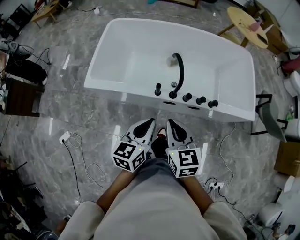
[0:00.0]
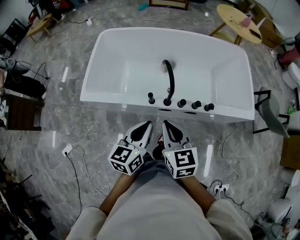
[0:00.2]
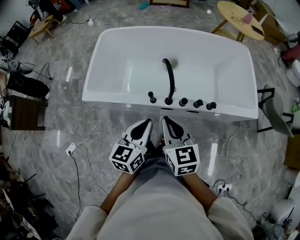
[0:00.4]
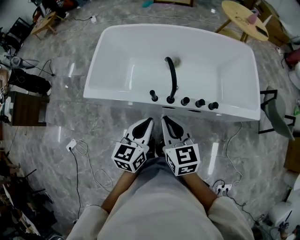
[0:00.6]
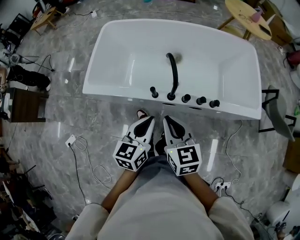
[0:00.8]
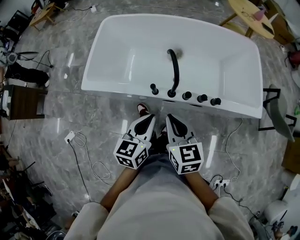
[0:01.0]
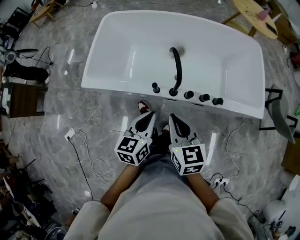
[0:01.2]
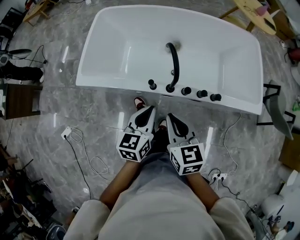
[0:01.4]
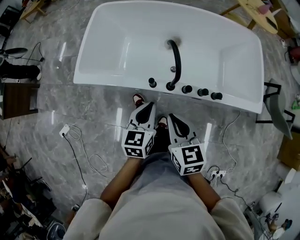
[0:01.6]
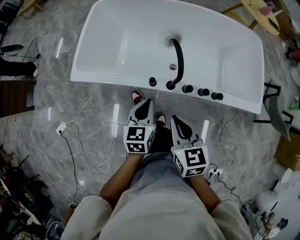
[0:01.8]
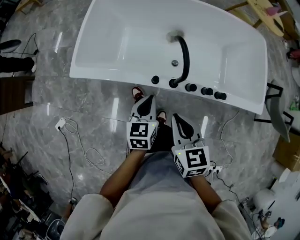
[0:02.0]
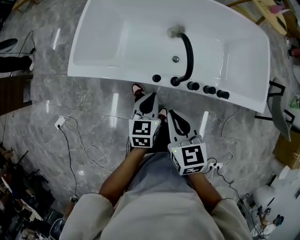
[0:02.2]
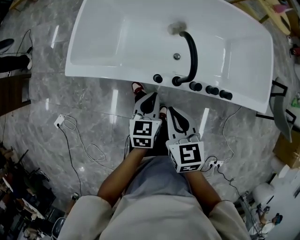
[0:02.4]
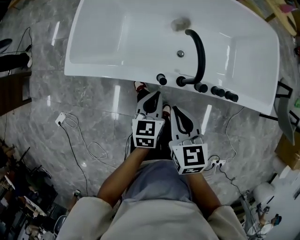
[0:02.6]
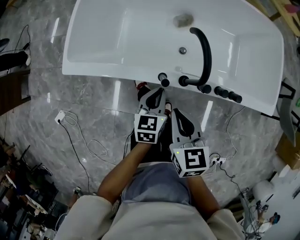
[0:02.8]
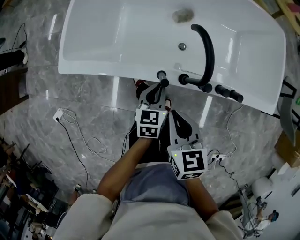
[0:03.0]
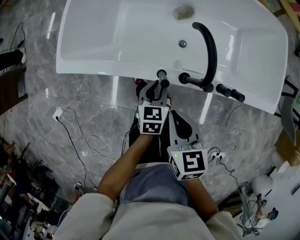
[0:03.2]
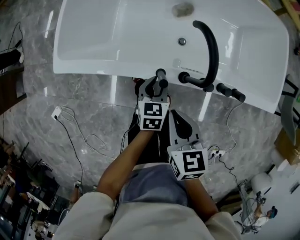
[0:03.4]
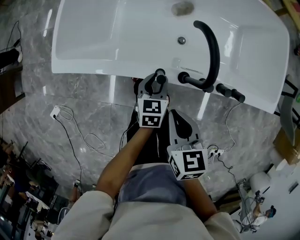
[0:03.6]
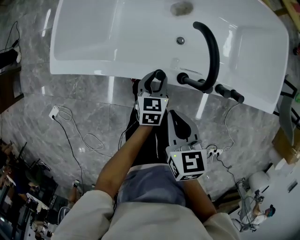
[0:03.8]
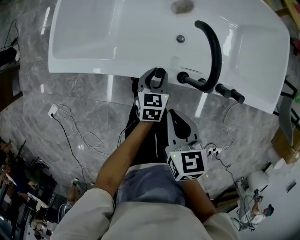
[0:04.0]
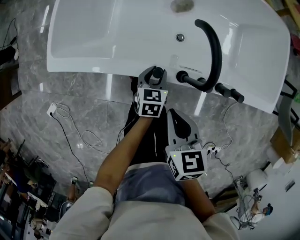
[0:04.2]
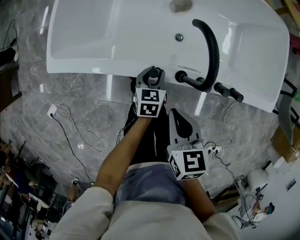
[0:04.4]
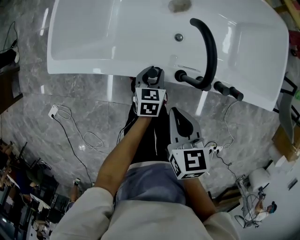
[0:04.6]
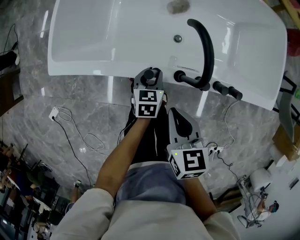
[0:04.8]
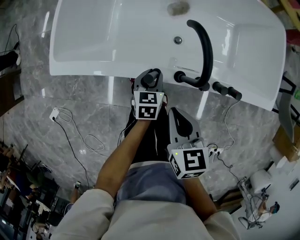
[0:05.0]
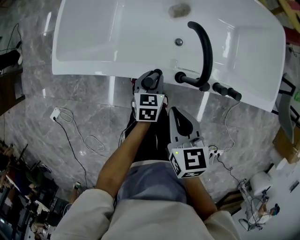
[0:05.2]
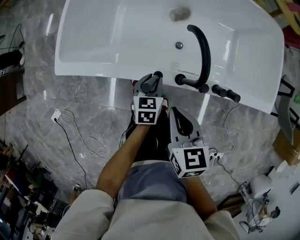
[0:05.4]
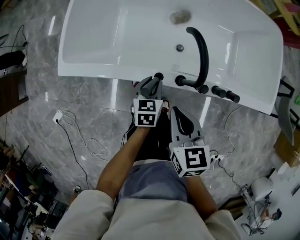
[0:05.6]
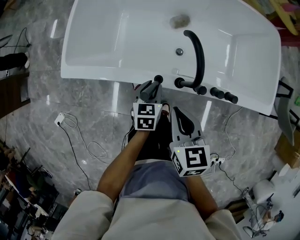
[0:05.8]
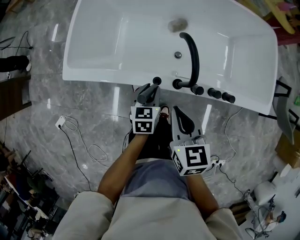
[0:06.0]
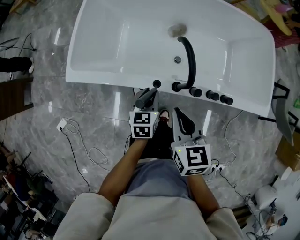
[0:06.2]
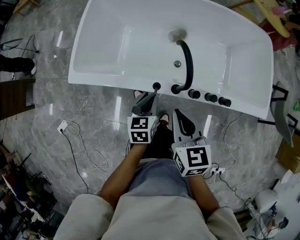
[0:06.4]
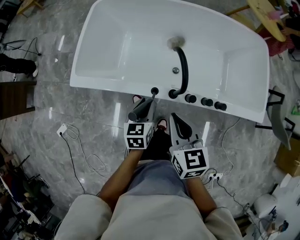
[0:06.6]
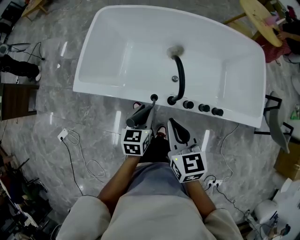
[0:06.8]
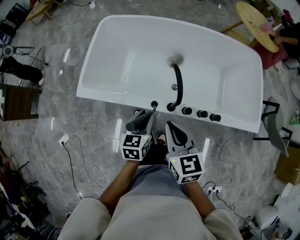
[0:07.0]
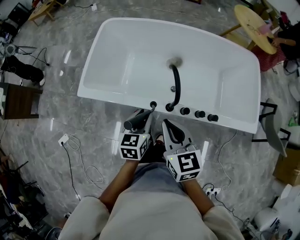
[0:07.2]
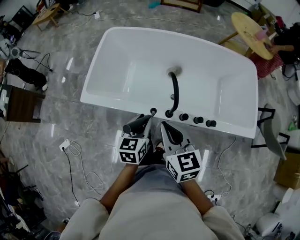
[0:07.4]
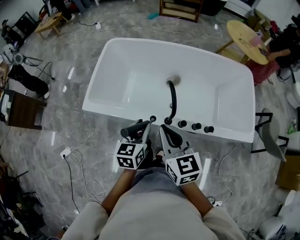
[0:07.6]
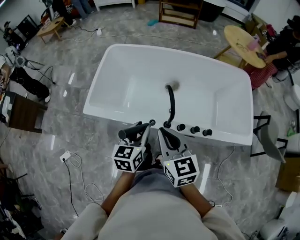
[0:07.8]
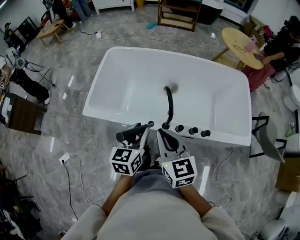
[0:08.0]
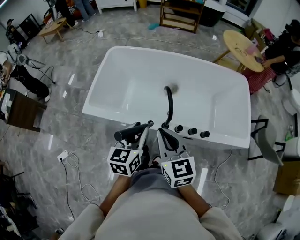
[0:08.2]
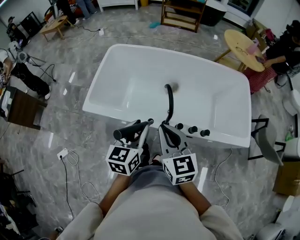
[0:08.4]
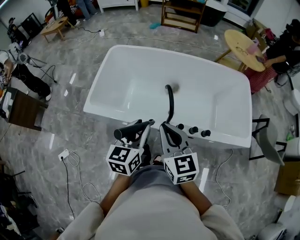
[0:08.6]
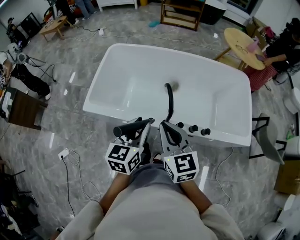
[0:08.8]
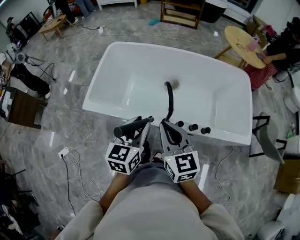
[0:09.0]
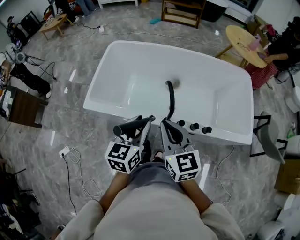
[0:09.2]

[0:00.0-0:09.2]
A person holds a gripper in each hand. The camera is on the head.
0:00.0 to 0:01.6: The left gripper shifts roughly 10 cm downward and forward; the right gripper is displaced downward by approximately 5 cm.
0:01.6 to 0:03.0: The left gripper heads downward and forward, covering approximately 20 cm. Meanwhile the right gripper moves downward and forward, approximately 15 cm.
0:03.0 to 0:04.6: The left gripper travels downward by approximately 10 cm, and opens up.
0:04.6 to 0:06.2: The two grippers go some 10 cm upward.
0:06.2 to 0:07.6: The grippers both shift upward by some 15 cm.
0:07.6 to 0:09.2: The left gripper goes about 10 cm upward.

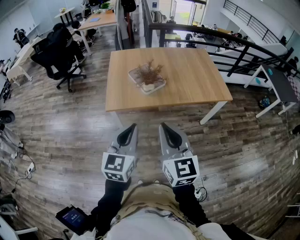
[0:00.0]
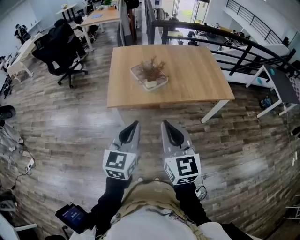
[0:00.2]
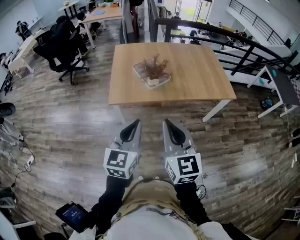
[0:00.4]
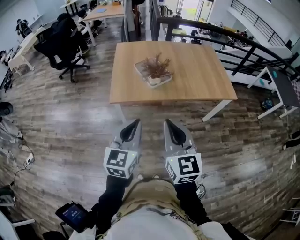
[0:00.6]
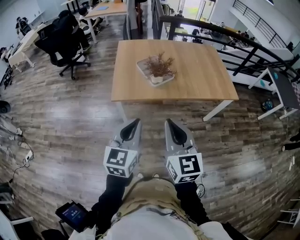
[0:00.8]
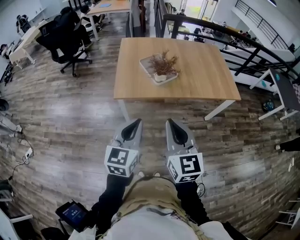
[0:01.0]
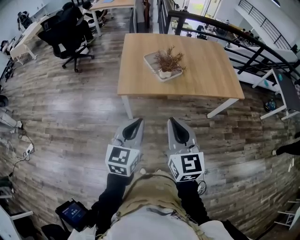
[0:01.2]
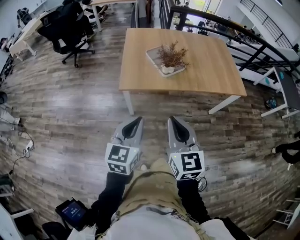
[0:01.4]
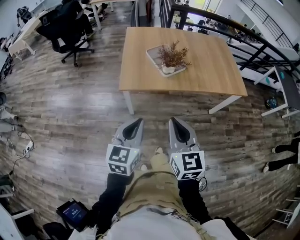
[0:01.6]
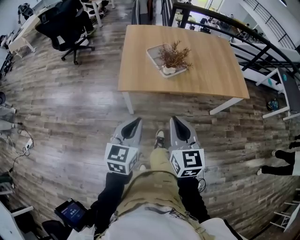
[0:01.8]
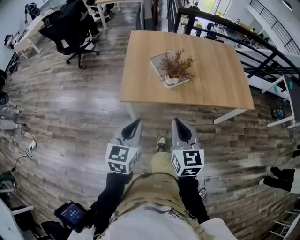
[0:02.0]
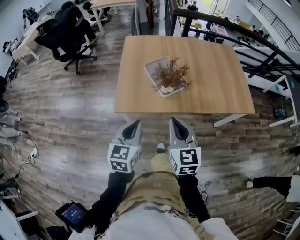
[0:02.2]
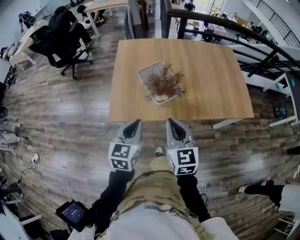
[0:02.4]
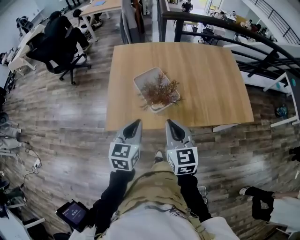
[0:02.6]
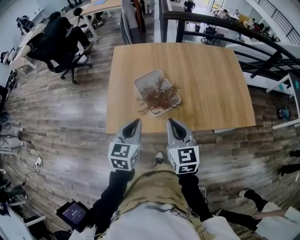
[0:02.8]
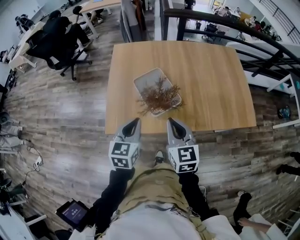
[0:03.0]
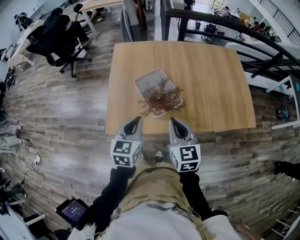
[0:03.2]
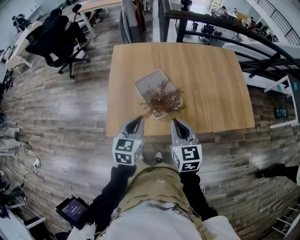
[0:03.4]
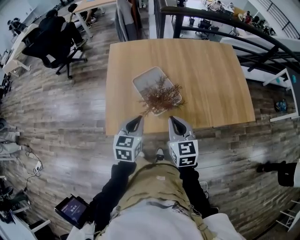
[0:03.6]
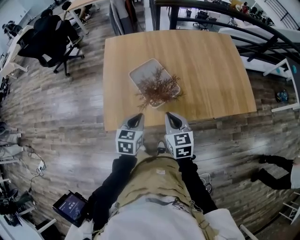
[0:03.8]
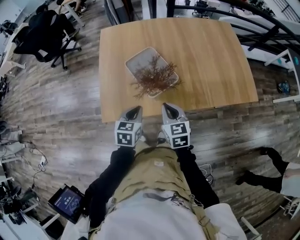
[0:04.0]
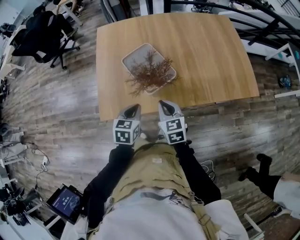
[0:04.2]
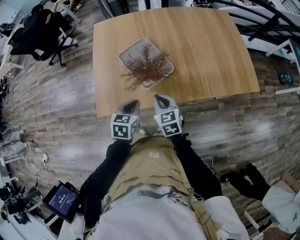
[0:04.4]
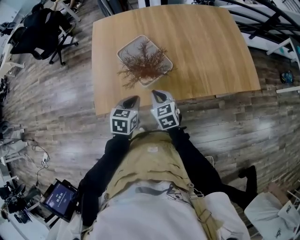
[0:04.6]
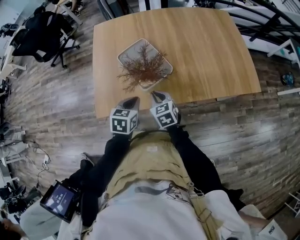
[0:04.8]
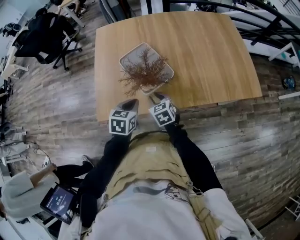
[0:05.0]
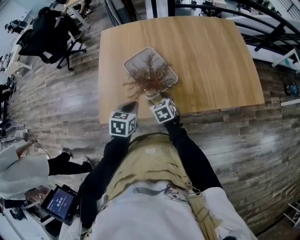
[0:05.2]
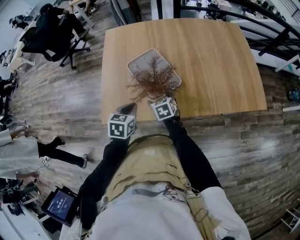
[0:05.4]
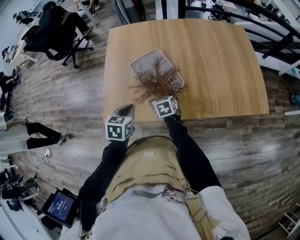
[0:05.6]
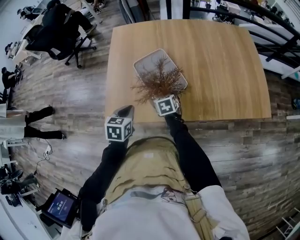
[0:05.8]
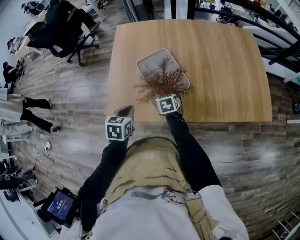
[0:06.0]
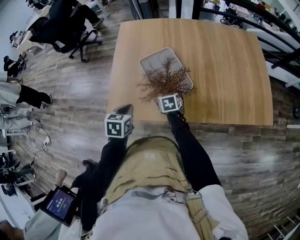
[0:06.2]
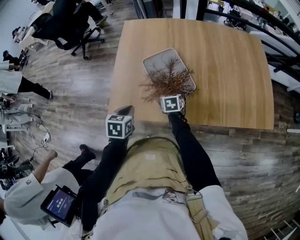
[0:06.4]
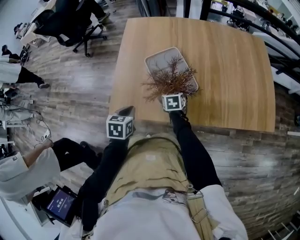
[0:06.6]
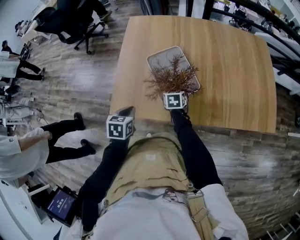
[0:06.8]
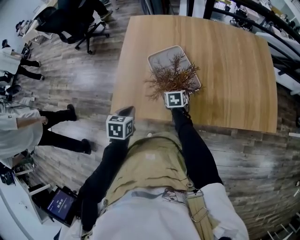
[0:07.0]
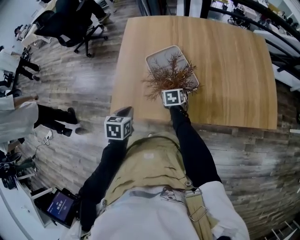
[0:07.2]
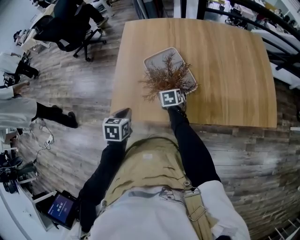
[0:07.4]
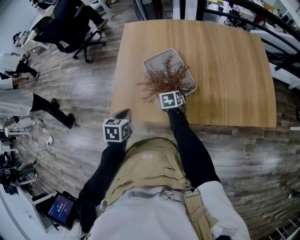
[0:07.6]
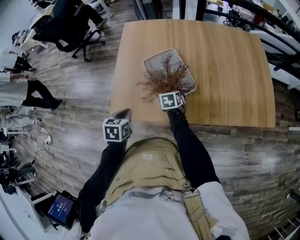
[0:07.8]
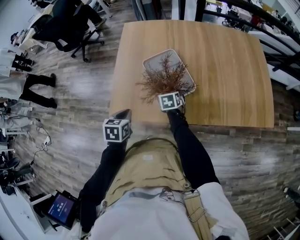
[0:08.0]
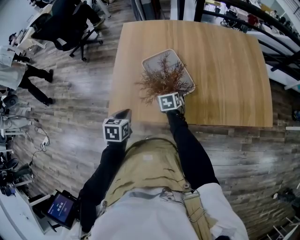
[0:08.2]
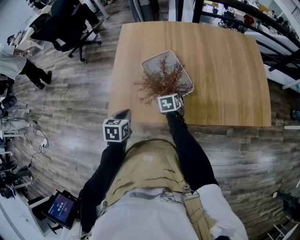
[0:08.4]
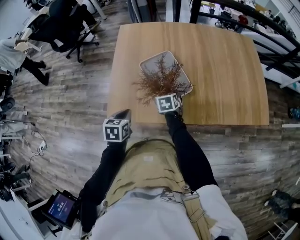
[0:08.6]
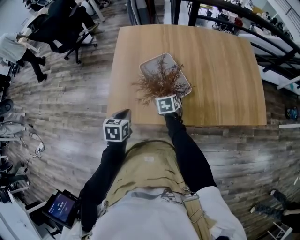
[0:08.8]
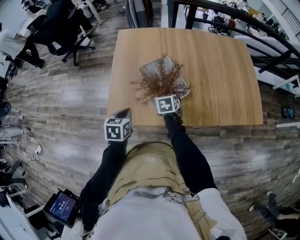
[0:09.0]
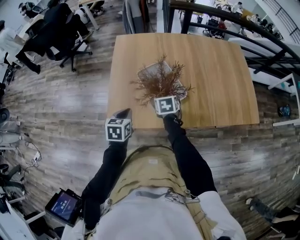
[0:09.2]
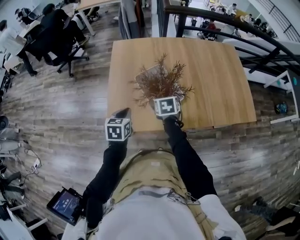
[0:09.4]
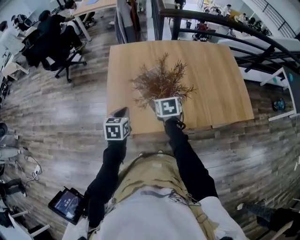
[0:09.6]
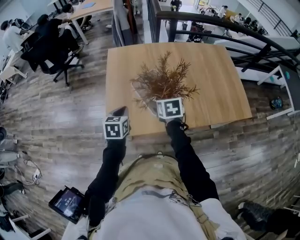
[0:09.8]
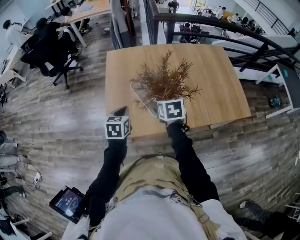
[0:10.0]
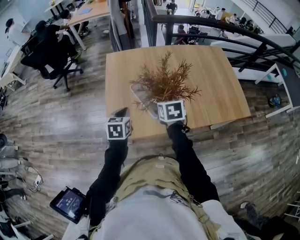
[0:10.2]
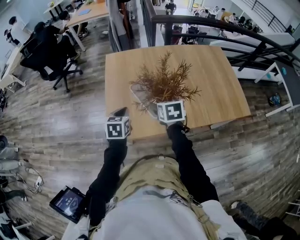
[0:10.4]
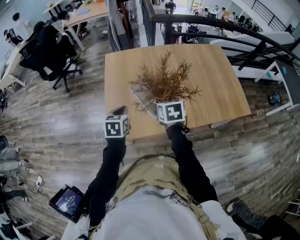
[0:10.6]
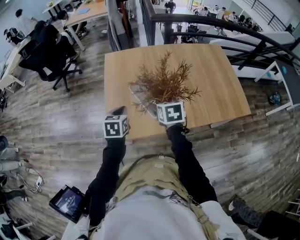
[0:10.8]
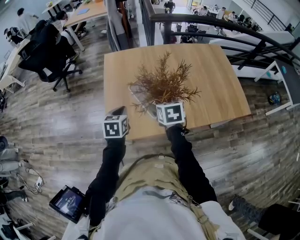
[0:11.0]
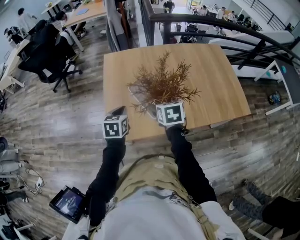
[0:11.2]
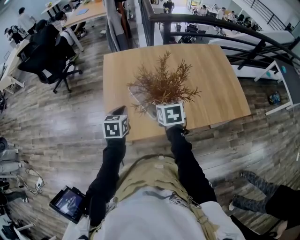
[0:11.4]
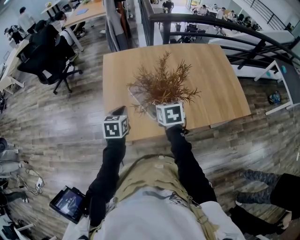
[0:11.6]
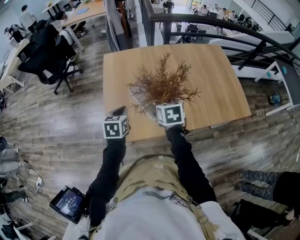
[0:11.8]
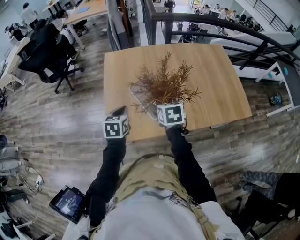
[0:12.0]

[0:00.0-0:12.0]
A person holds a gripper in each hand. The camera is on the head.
0:00.0 to 0:01.6: The two grippers go some 15 cm to the left and downward.
0:01.6 to 0:03.0: The pair of grippers is taken forward, about 40 cm.
0:03.0 to 0:04.4: Both grippers move downward, about 15 cm. The left gripper rotates approximately 20 degrees.
0:04.4 to 0:06.0: The left gripper goes roughly 5 cm to the left. Meanwhile the right gripper heads downward and forward, covering approximately 15 cm, and opens up.
0:06.0 to 0:07.6: The left gripper moves approximately 5 cm.
0:07.6 to 0:09.0: The right gripper travels upward by some 5 cm.
0:09.0 to 0:10.4: The left gripper is displaced upward by about 10 cm, while the right gripper travels upward by roughly 20 cm.
0:10.4 to 0:12.0: The grippers move only a little.

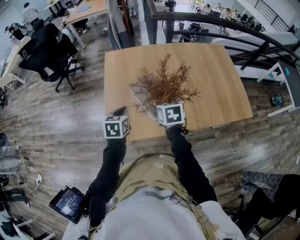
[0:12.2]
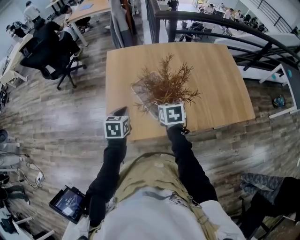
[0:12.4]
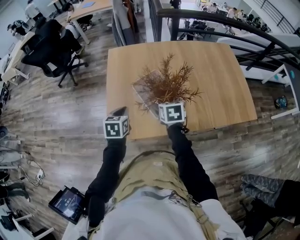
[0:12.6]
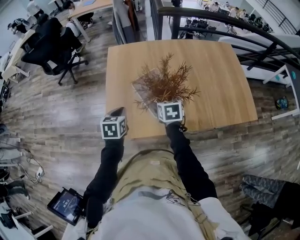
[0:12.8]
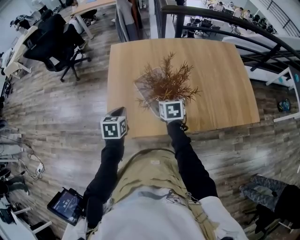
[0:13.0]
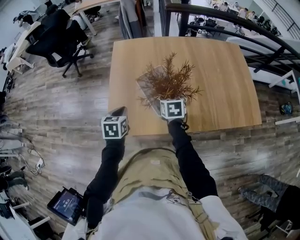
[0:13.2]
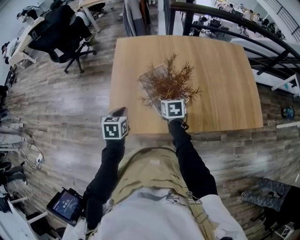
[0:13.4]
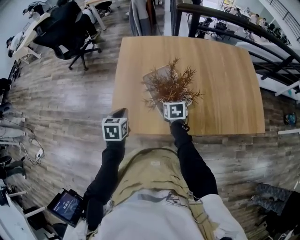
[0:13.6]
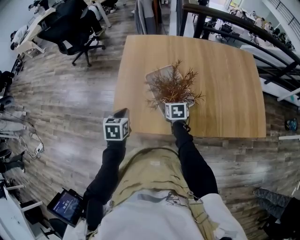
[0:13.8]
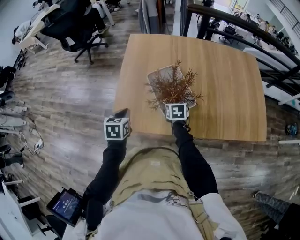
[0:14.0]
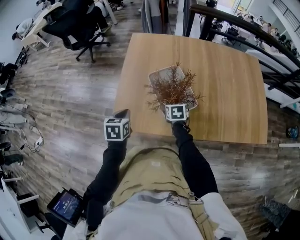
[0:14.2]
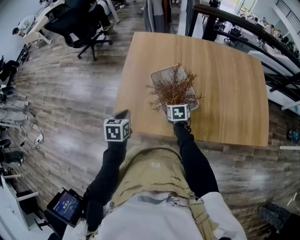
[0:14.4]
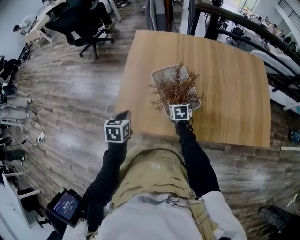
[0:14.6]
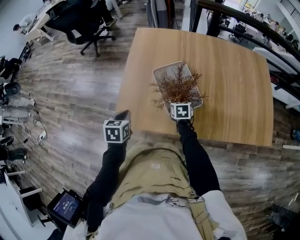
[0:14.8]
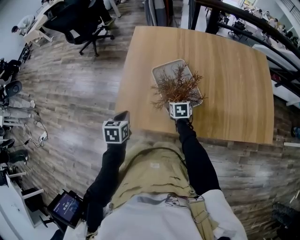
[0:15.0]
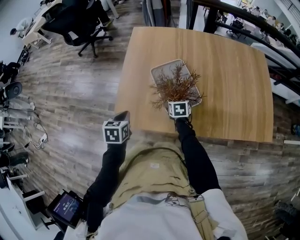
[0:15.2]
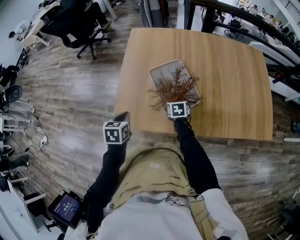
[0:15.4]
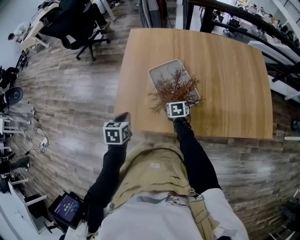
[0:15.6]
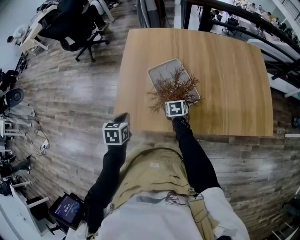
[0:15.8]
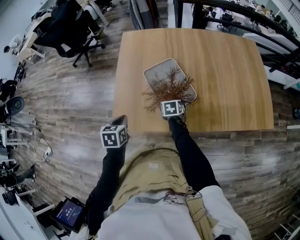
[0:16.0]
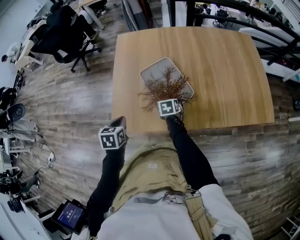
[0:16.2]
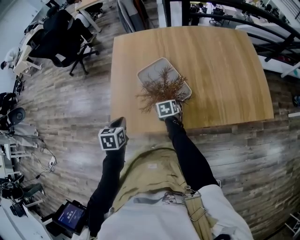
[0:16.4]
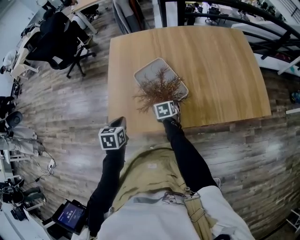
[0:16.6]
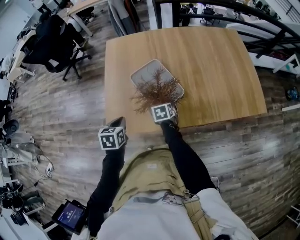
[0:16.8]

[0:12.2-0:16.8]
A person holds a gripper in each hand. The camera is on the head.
0:12.2 to 0:13.8: The left gripper heads downward, covering approximately 5 cm; the right gripper shifts roughly 15 cm downward.
0:13.8 to 0:15.2: The right gripper shifts some 5 cm downward.
0:15.2 to 0:16.8: The left gripper shifts some 5 cm to the right, while the right gripper goes approximately 5 cm backward.
